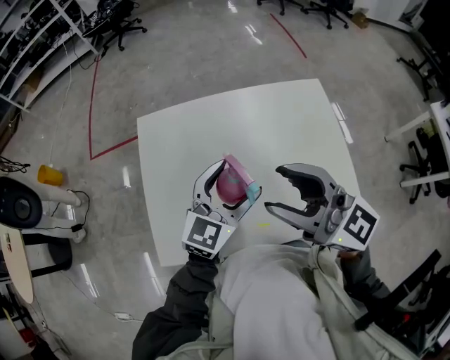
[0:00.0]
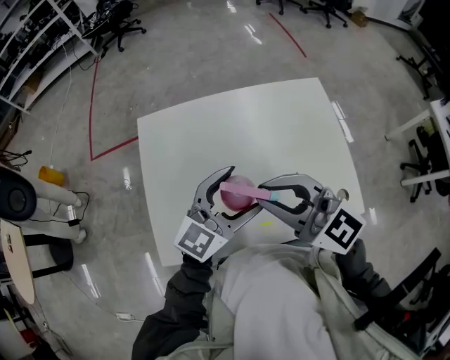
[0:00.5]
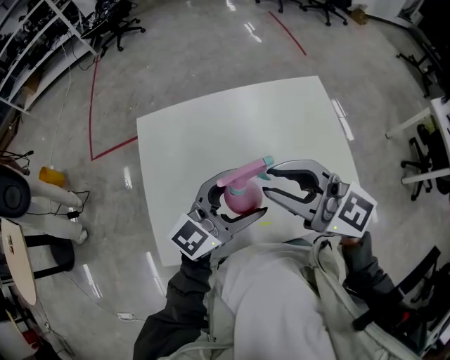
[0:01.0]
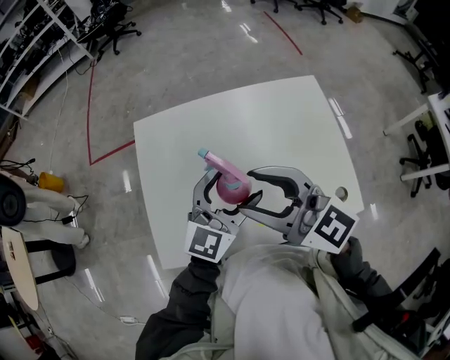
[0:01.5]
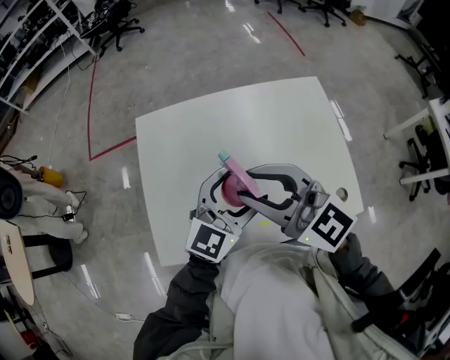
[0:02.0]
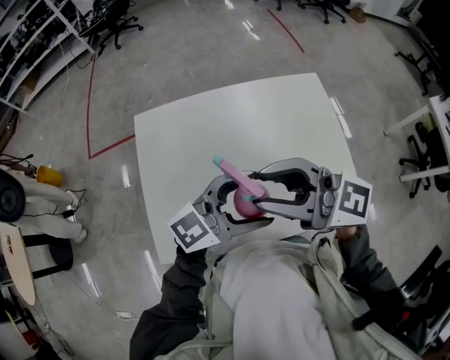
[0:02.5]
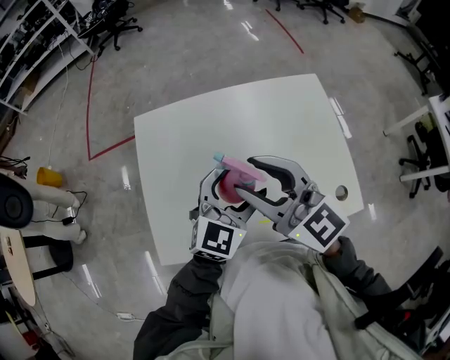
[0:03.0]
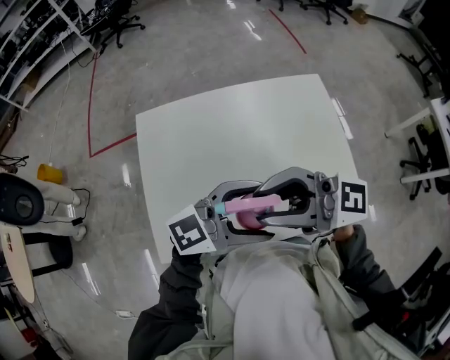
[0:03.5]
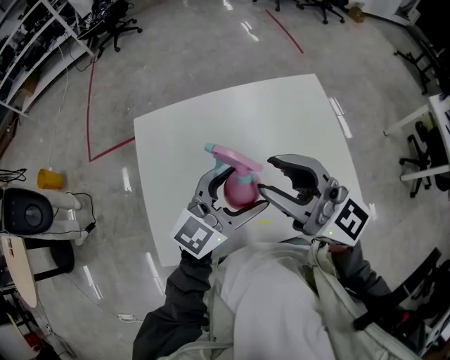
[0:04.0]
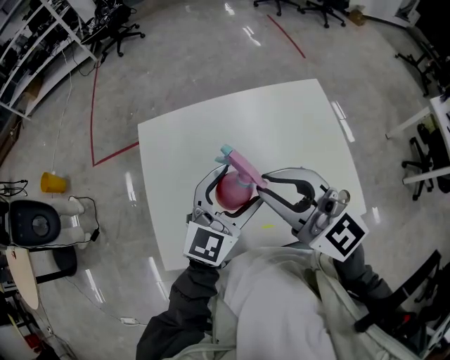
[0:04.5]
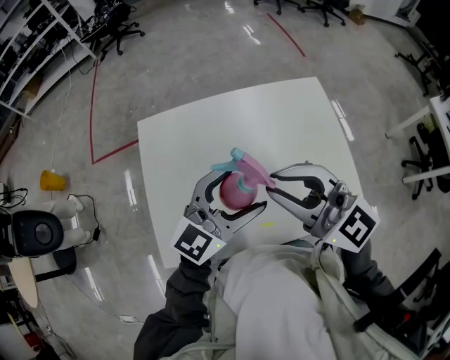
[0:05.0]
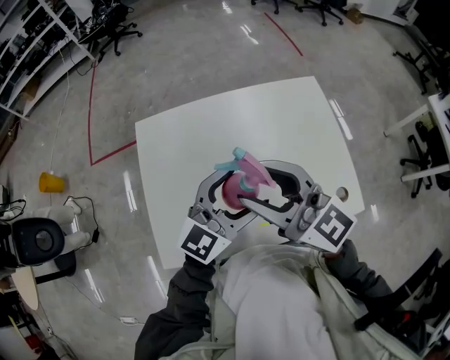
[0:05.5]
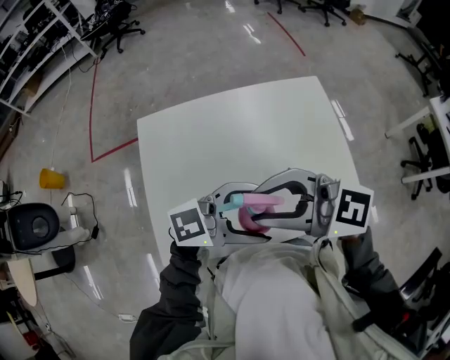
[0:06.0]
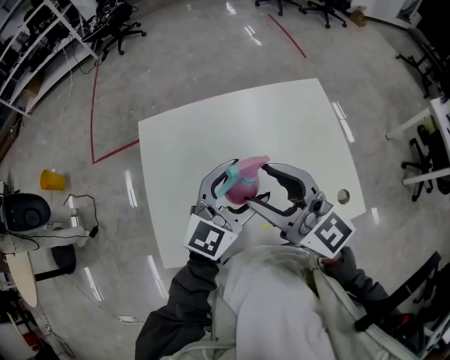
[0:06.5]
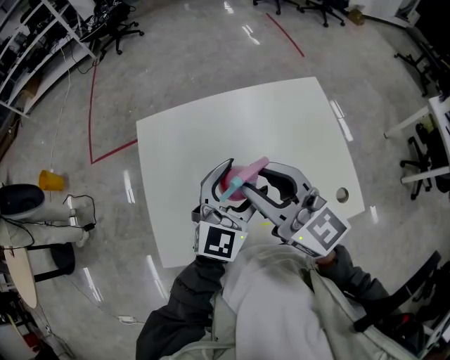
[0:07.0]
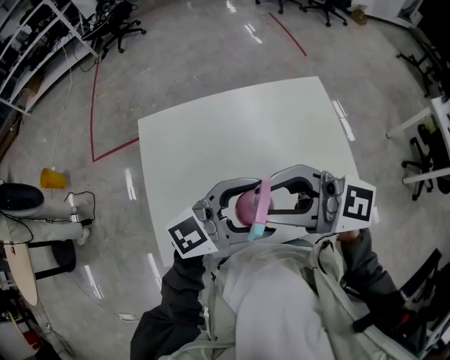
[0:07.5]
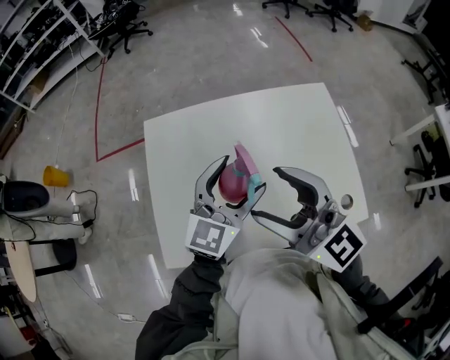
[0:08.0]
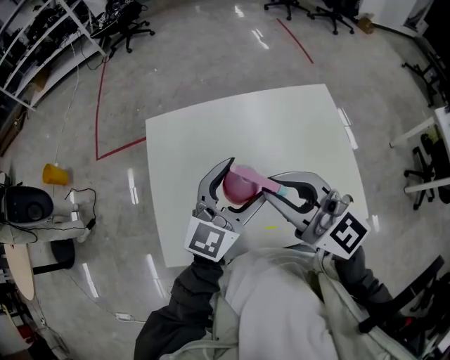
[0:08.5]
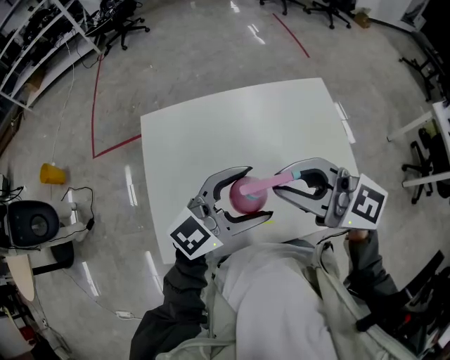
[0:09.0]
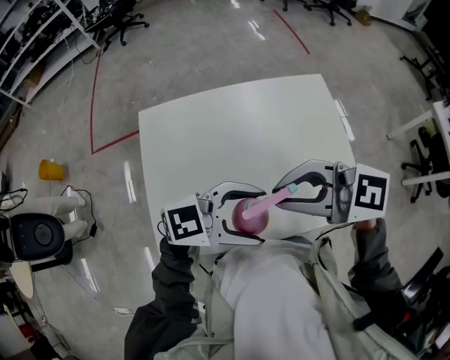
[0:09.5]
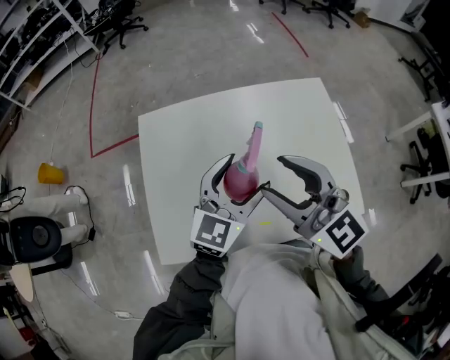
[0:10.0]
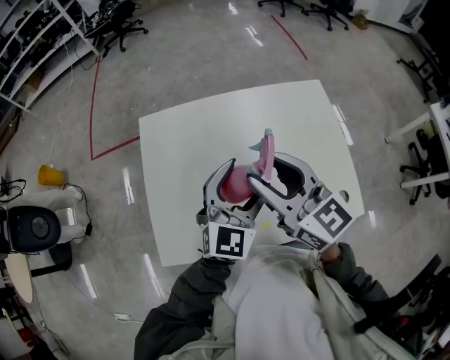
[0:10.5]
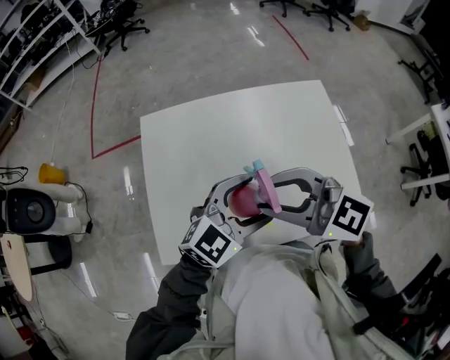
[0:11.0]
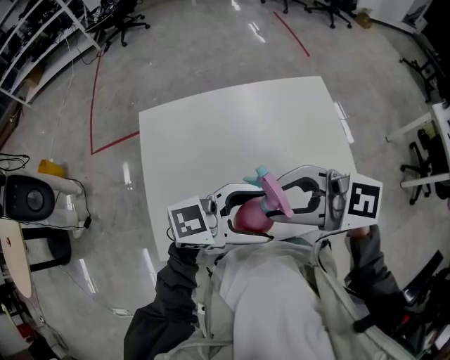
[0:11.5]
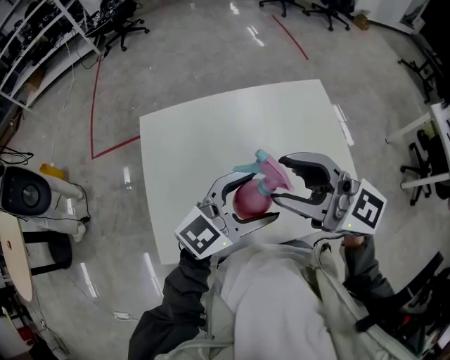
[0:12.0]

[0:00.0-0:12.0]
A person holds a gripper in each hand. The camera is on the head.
0:00.0 to 0:02.0: The right gripper changes place by some 5 cm, and closes.
0:02.0 to 0:04.0: The right gripper moves approximately 5 cm.
0:04.0 to 0:06.0: The left gripper ends up about 10 cm from where it was, and rotates about 30 degrees. Meanwhile the right gripper ends up about 5 cm from where it was, and swivels approximately 30 degrees.
0:06.0 to 0:08.0: The right gripper swivels roughly 30 degrees, and opens; the left gripper ends up about 10 cm from where it was, and rotates roughly 50 degrees.
0:08.0 to 0:10.0: The right gripper closes, then opens again.
0:10.0 to 0:12.0: The left gripper moves some 10 cm, and turns by approximately 30 degrees. The right gripper swivels some 20 degrees.

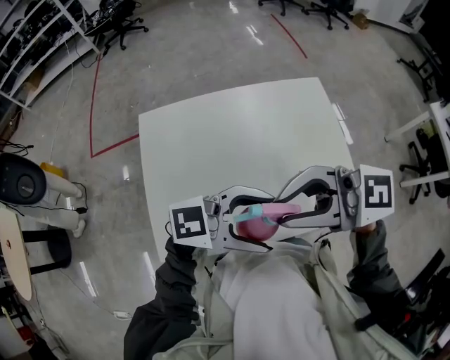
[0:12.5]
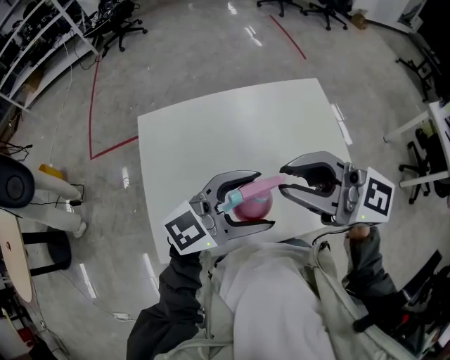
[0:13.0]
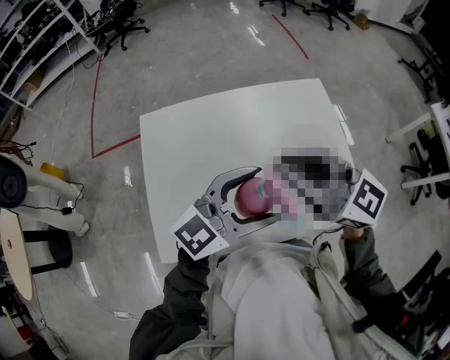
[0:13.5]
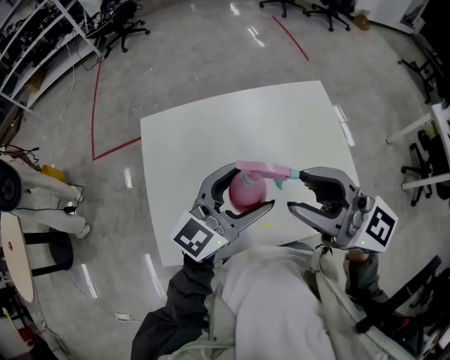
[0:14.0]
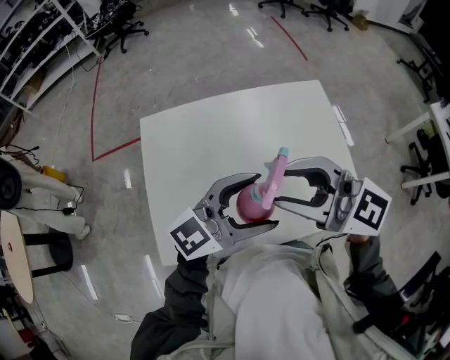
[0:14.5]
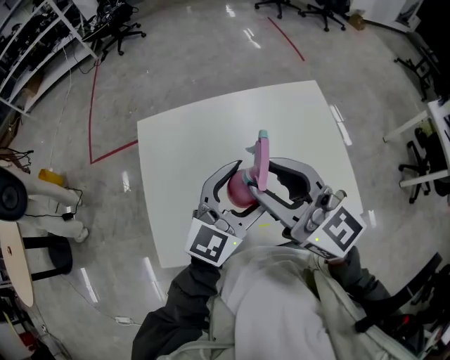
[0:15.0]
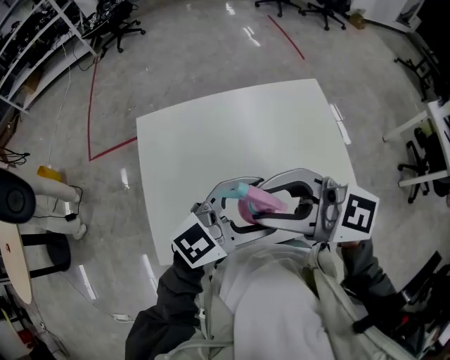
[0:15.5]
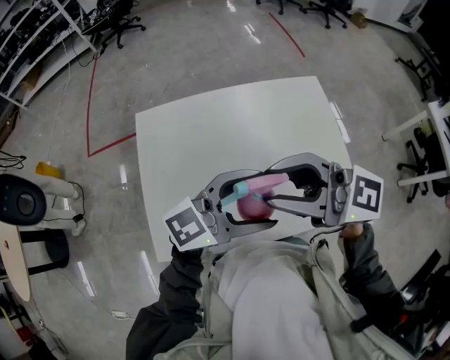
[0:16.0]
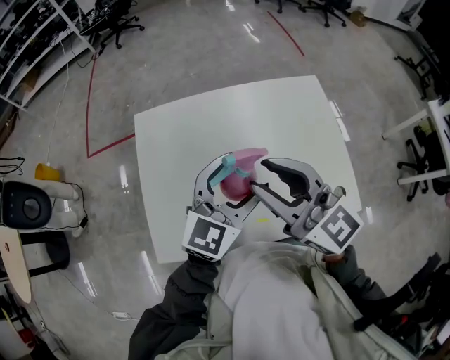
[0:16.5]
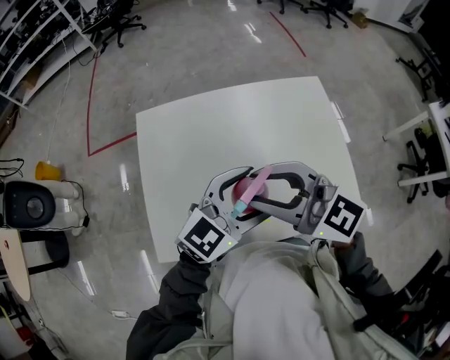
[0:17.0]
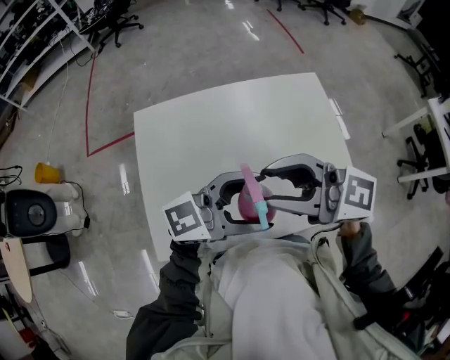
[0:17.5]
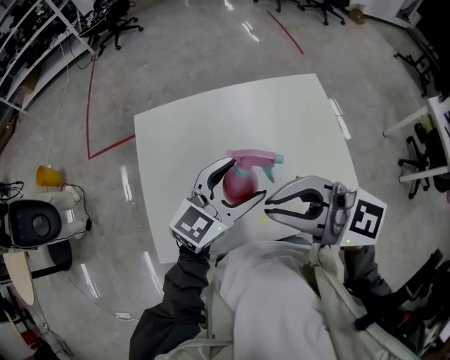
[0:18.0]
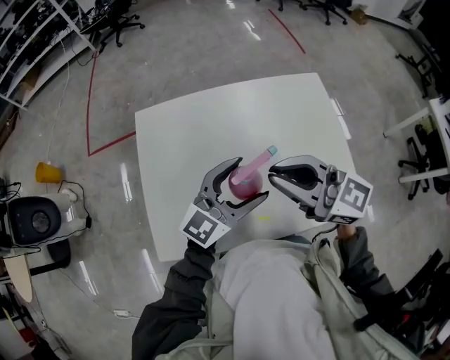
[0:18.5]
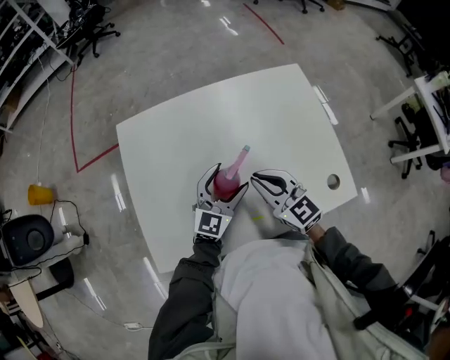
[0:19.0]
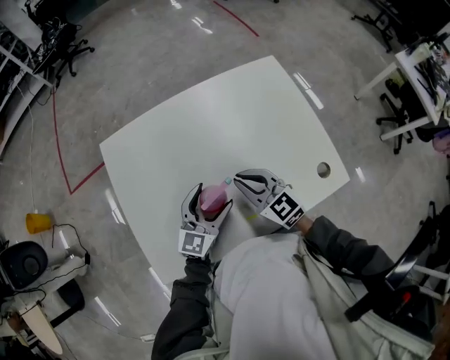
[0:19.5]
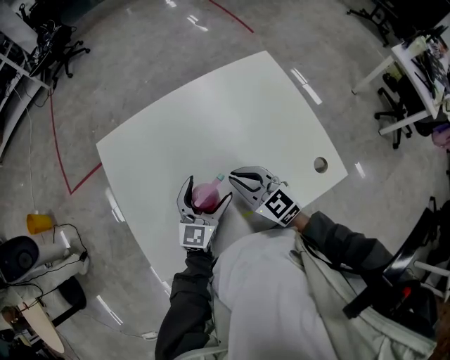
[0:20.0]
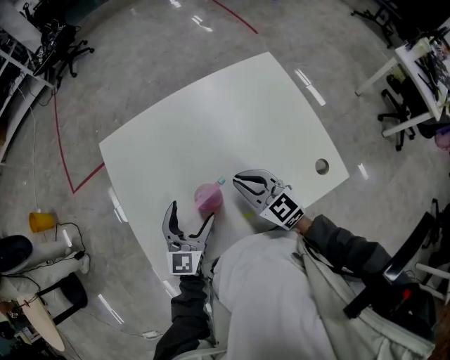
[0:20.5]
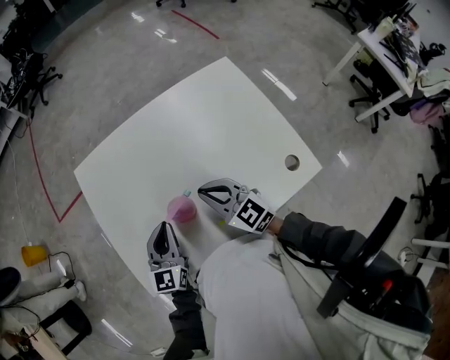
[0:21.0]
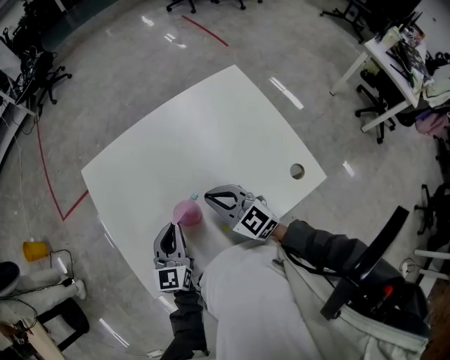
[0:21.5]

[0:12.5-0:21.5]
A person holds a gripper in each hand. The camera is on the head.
0:12.5 to 0:14.5: The left gripper swivels some 30 degrees; the right gripper rotates some 20 degrees.
0:14.5 to 0:17.0: The right gripper shifts by roughly 5 cm. The left gripper changes its angle by about 20 degrees.
0:17.0 to 0:19.5: Both grippers move downward, some 20 cm. The left gripper changes its angle by approximately 20 degrees. The right gripper rotates some 30 degrees, and closes up.
0:19.5 to 0:21.5: The left gripper shifts roughly 5 cm to the left, and closes.

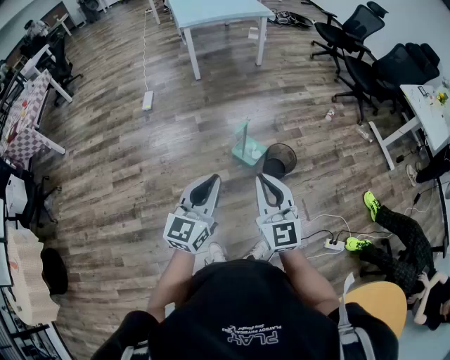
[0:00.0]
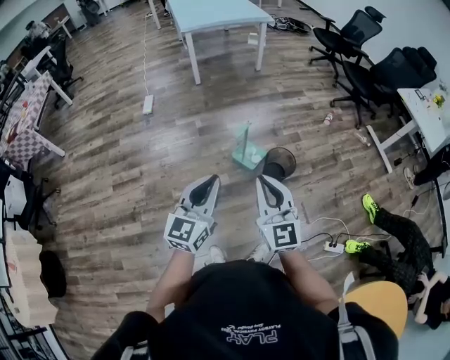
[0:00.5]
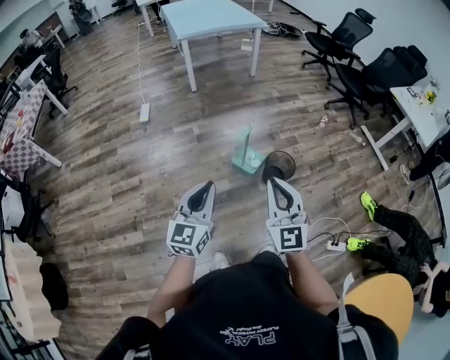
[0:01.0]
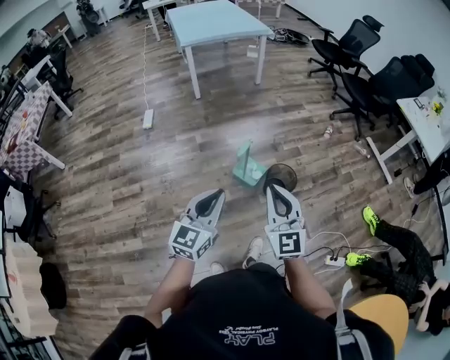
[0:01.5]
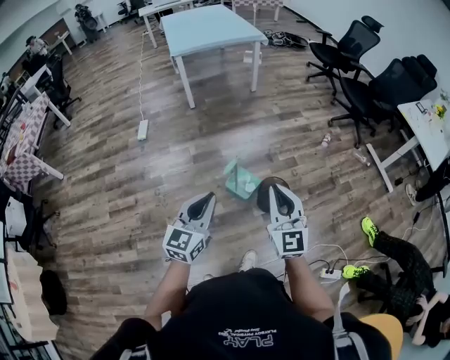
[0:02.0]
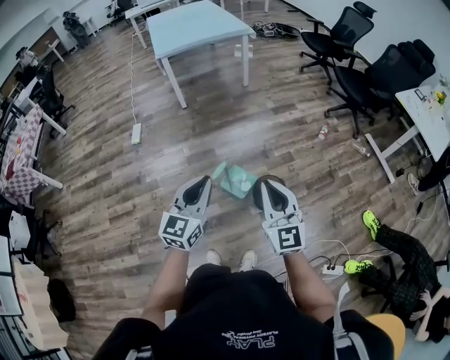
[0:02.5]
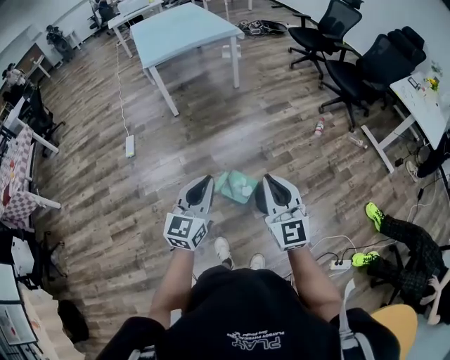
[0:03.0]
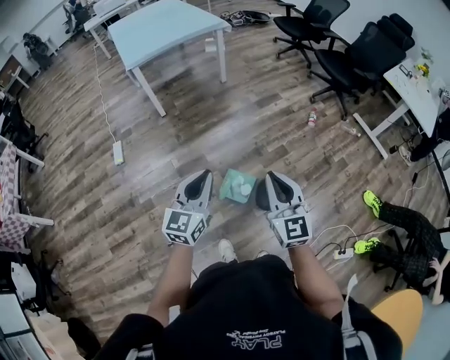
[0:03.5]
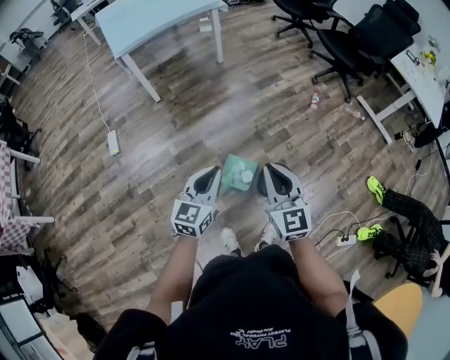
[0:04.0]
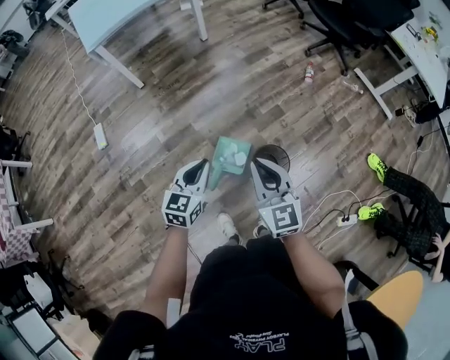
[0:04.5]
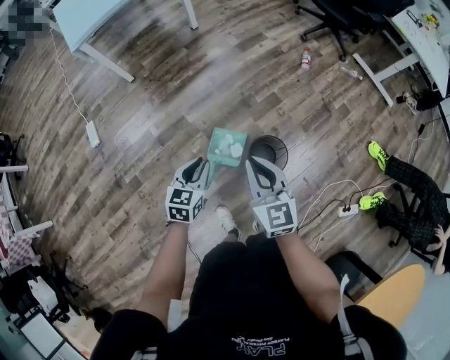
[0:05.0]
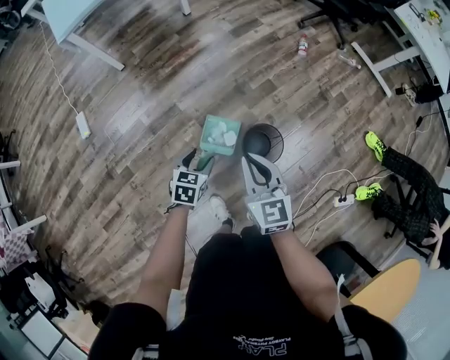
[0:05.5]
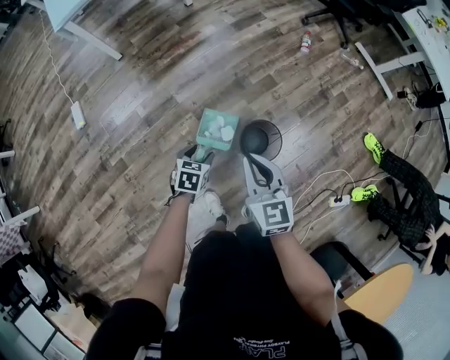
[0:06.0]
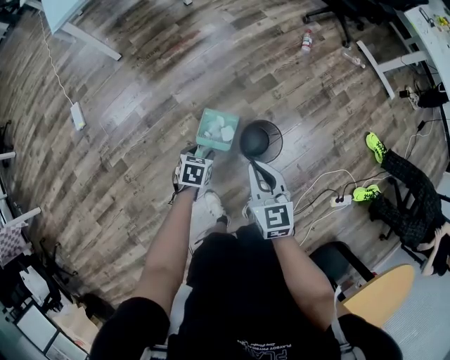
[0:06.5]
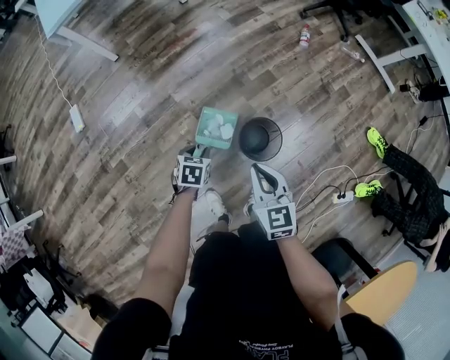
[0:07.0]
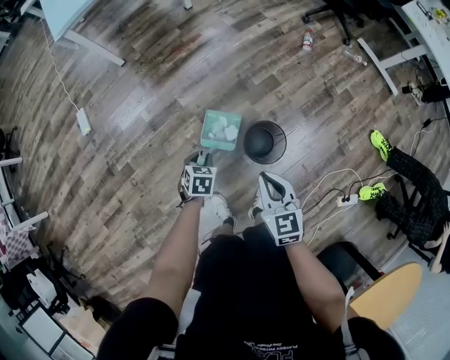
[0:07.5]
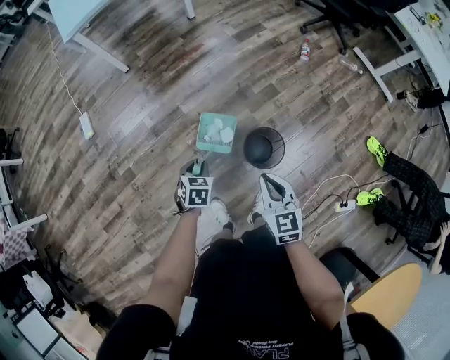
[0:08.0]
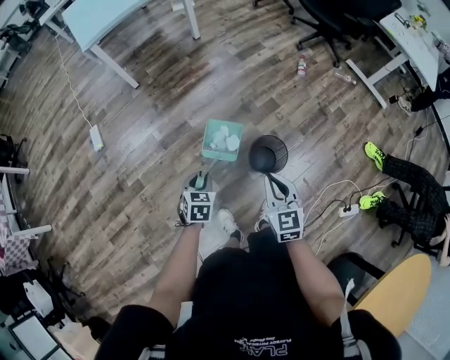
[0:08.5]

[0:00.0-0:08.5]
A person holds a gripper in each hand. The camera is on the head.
0:00.0 to 0:02.0: The left gripper moves forward, about 10 cm, while the right gripper shifts approximately 15 cm forward and to the right.
0:02.0 to 0:04.0: The two grippers go about 25 cm forward.
0:04.0 to 0:06.5: The right gripper moves downward, roughly 20 cm, and turns by some 20 degrees; the left gripper moves downward, about 35 cm, points its fingers approximately 50 degrees further downward, and opens its fingers.
0:06.5 to 0:08.5: The right gripper goes approximately 10 cm backward. The left gripper goes roughly 15 cm upward, backward and to the left, and closes up.
